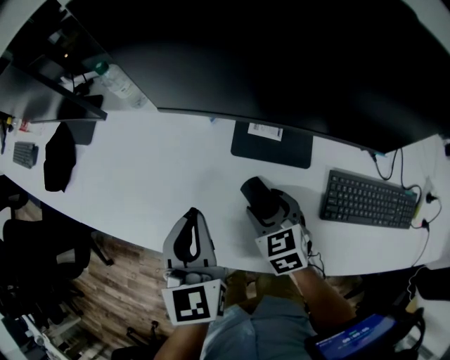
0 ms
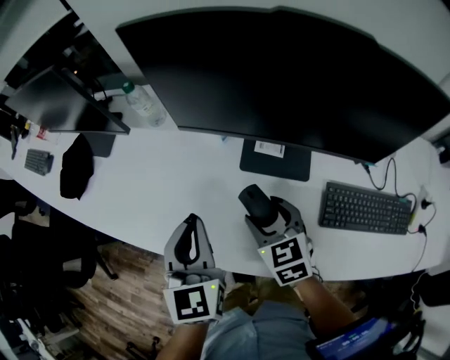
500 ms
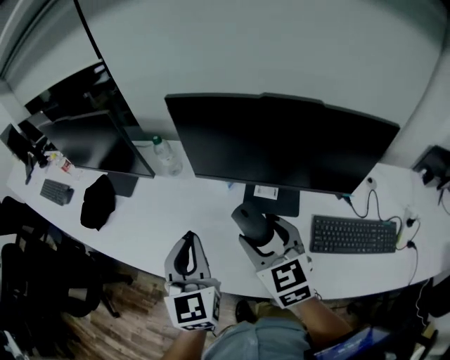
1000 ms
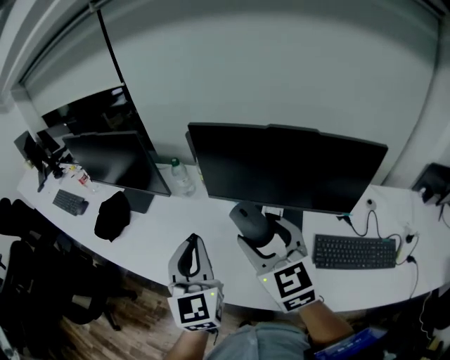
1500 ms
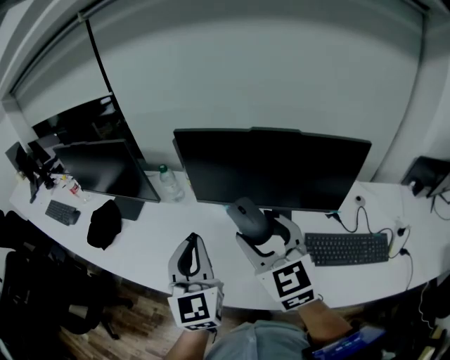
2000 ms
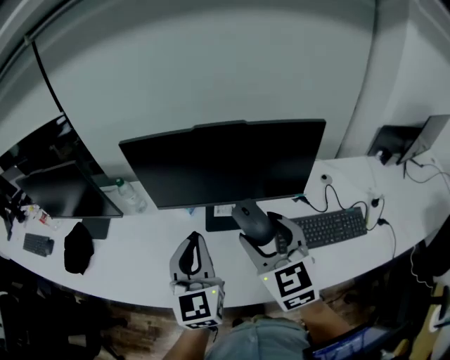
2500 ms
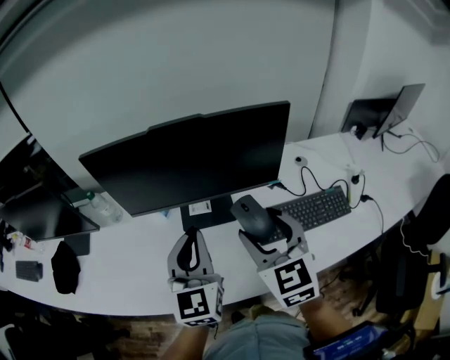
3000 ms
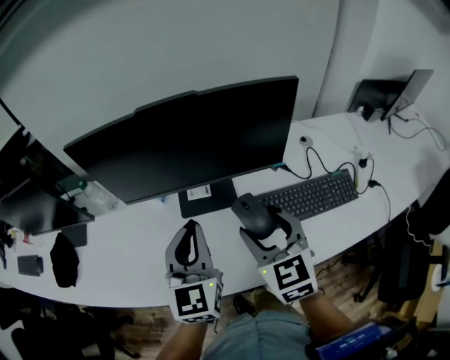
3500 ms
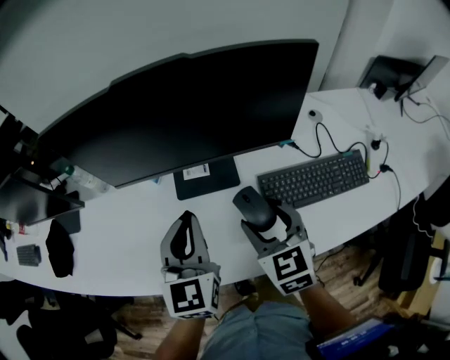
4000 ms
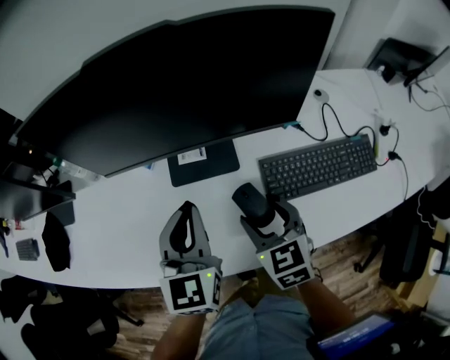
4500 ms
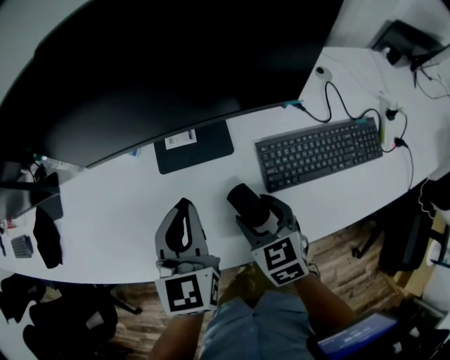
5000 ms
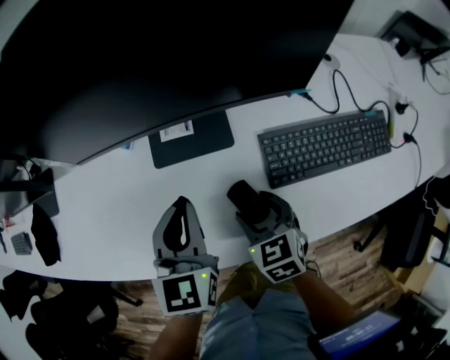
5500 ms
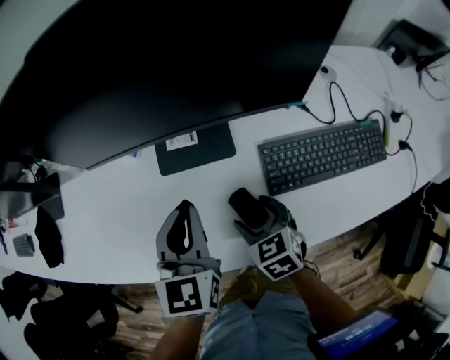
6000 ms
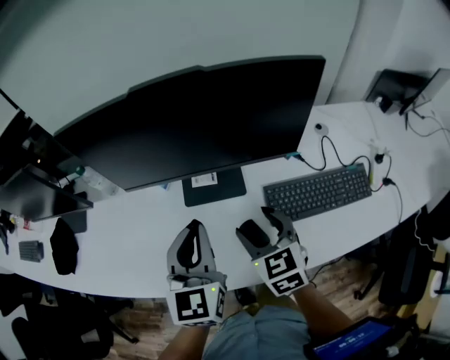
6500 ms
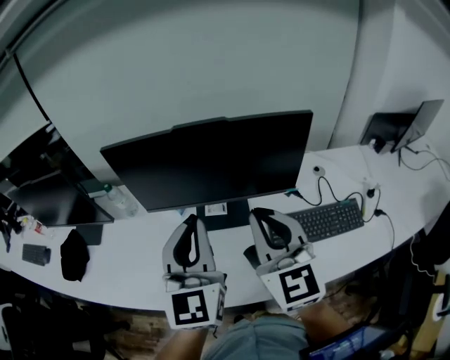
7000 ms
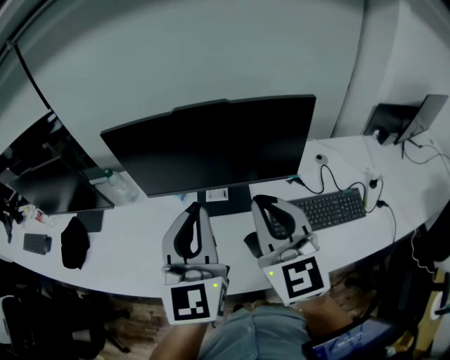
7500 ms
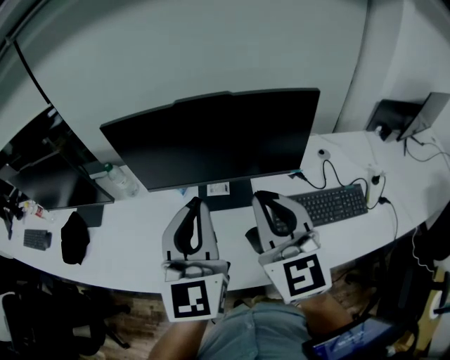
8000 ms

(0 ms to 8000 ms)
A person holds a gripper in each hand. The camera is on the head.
0 ms - 2000 ms: The left gripper goes approximately 20 cm upward, and turns by some 30 degrees; the right gripper goes some 35 cm upward, and tips its fingers upward by approximately 40 degrees.
2000 ms - 4000 ms: The right gripper goes roughly 25 cm downward and to the right, and swivels approximately 30 degrees; the left gripper goes some 20 cm to the right and downward, and changes its angle by roughly 30 degrees.
4000 ms - 6000 ms: The left gripper heads downward, covering some 5 cm; the right gripper travels downward by some 15 cm, and rotates roughly 20 degrees.
6000 ms - 8000 ms: The left gripper moves upward, some 20 cm, and turns by about 30 degrees; the right gripper is displaced upward by about 35 cm, tilts its fingers about 50 degrees upward, and closes.

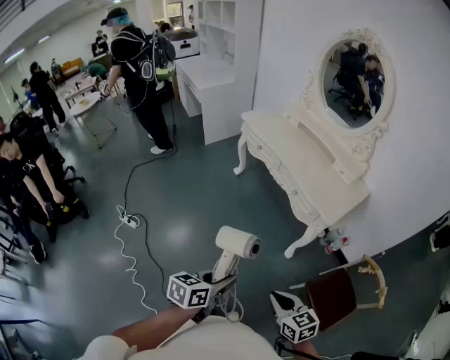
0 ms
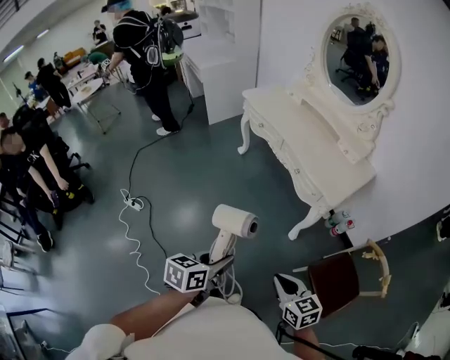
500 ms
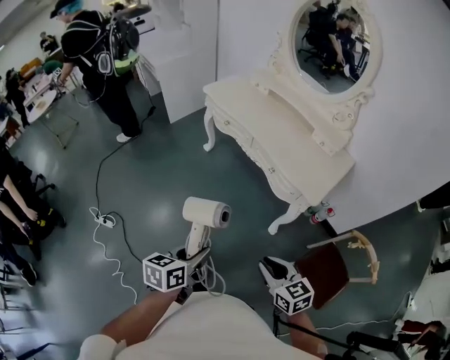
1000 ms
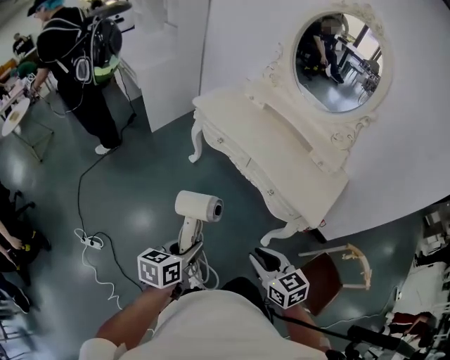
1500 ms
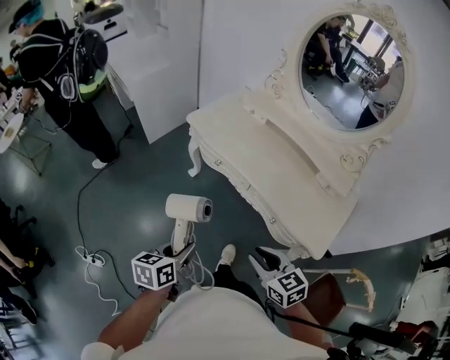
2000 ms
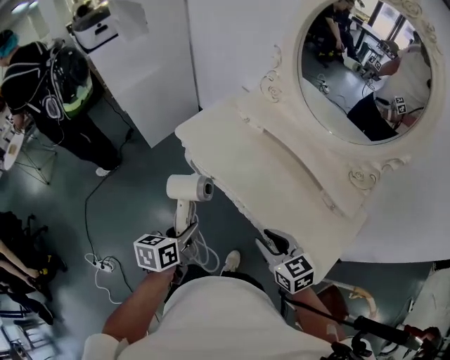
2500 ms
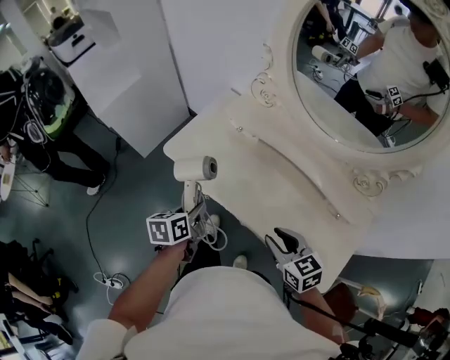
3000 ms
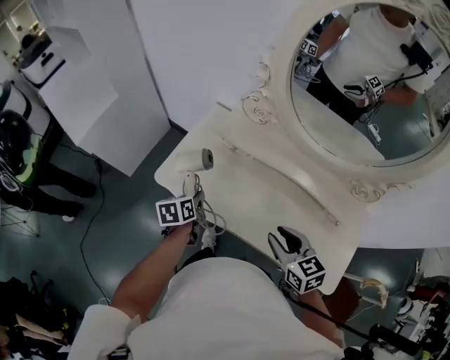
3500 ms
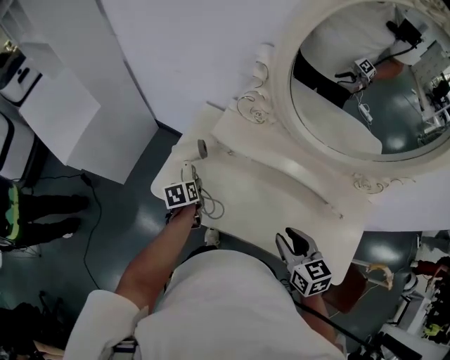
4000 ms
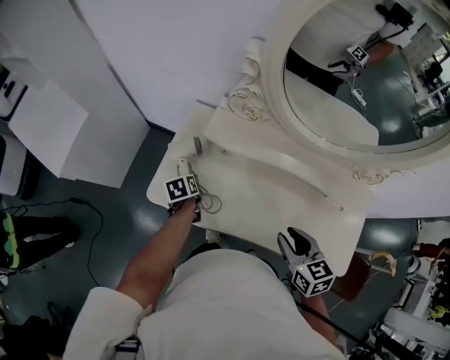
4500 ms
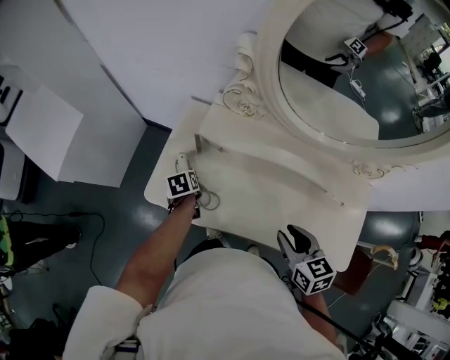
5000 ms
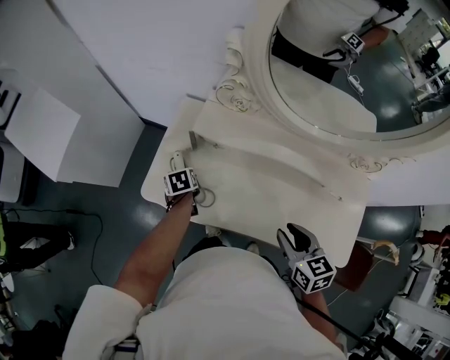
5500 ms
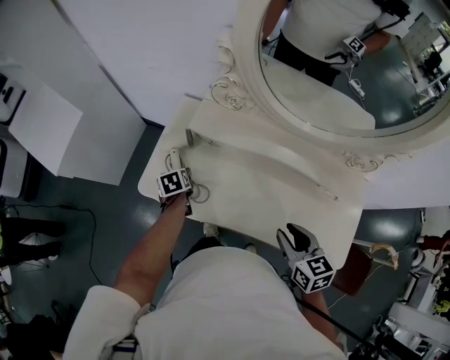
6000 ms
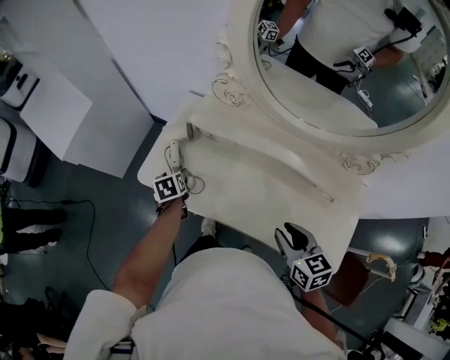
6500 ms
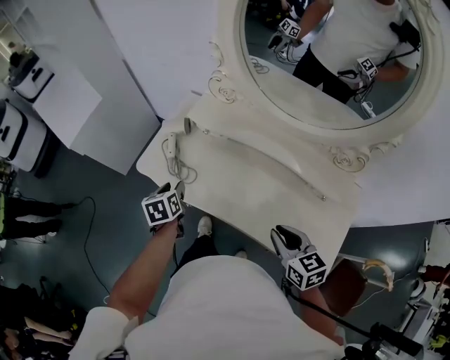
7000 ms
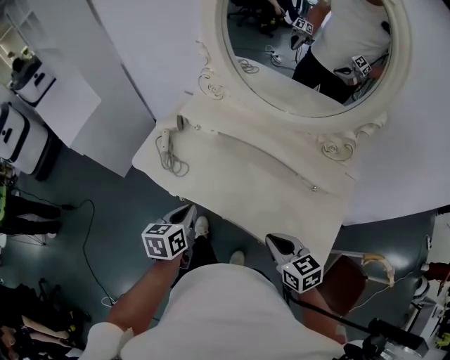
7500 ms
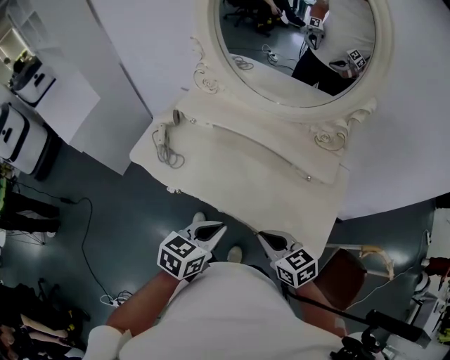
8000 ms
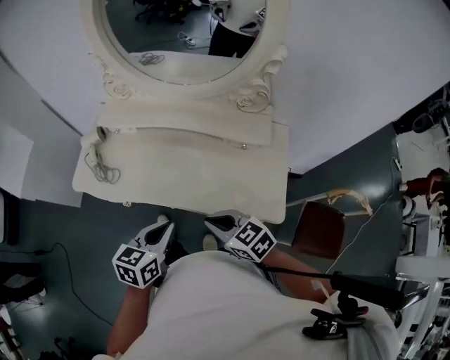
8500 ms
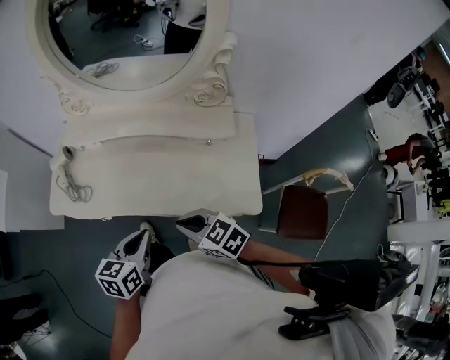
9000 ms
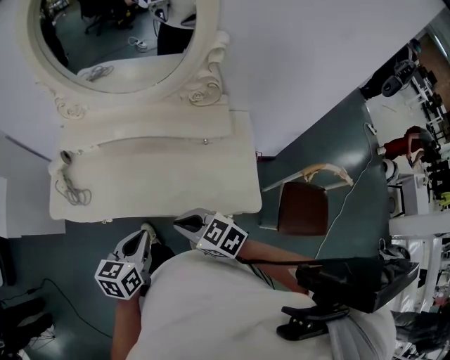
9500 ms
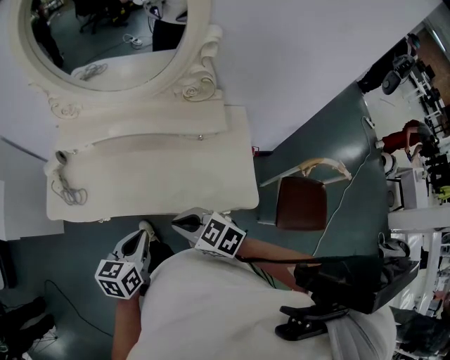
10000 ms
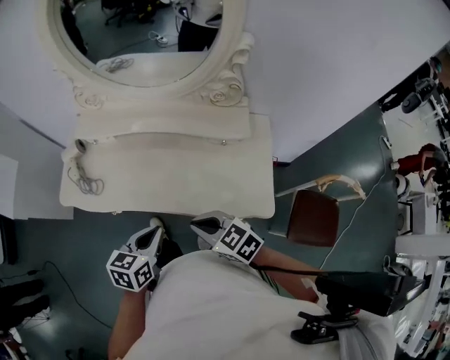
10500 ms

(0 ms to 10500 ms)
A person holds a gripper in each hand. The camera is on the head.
0 ms - 2000 ms: The two grippers travel together, forward, some 50 cm. The right gripper opens its fingers.
2000 ms - 4000 ms: The pair of grippers is taken forward, approximately 50 cm. The right gripper rotates approximately 30 degrees.
4000 ms - 6500 ms: The right gripper travels to the right and backward by approximately 10 cm, while the left gripper opens.
6500 ms - 8500 ms: The right gripper is displaced backward by roughly 15 cm, and closes up. The left gripper goes some 50 cm backward, to the right and upward, changes its angle by approximately 50 degrees, and closes.
8500 ms - 10500 ms: The grippers make only small movements.

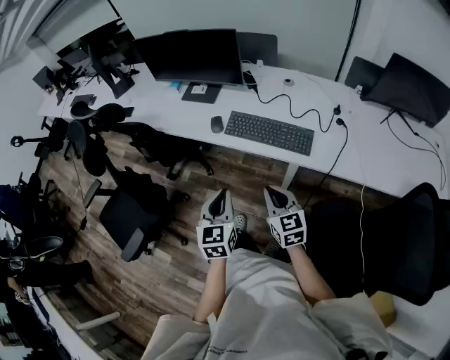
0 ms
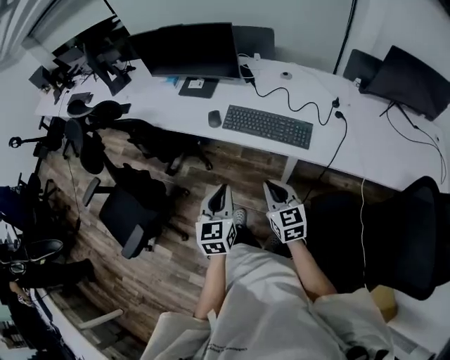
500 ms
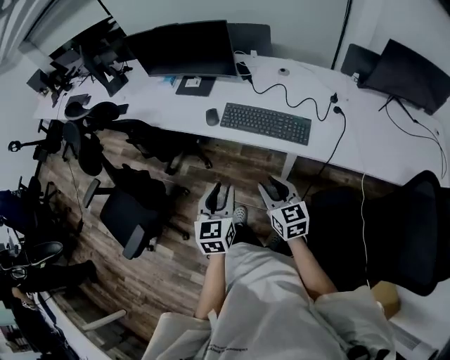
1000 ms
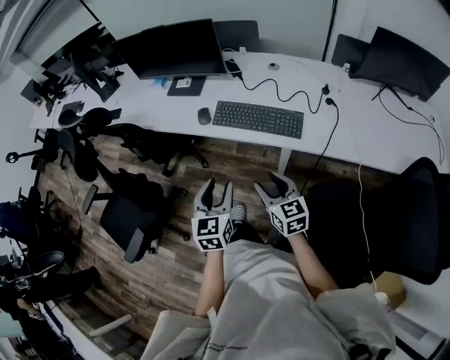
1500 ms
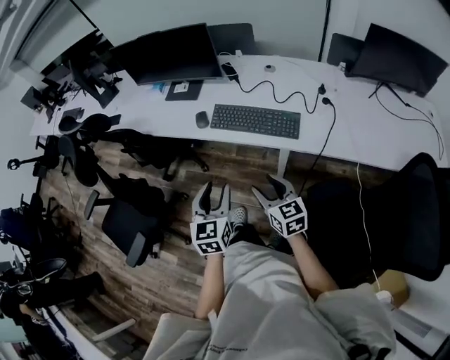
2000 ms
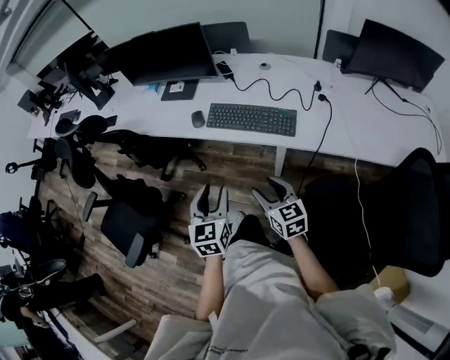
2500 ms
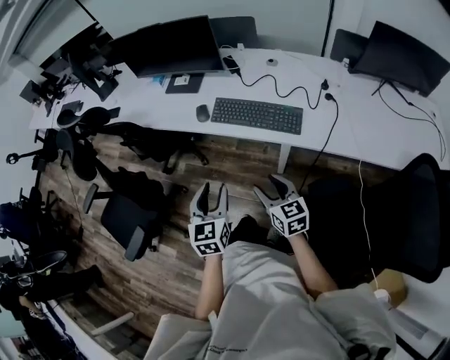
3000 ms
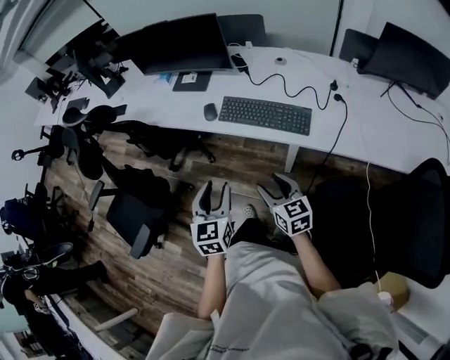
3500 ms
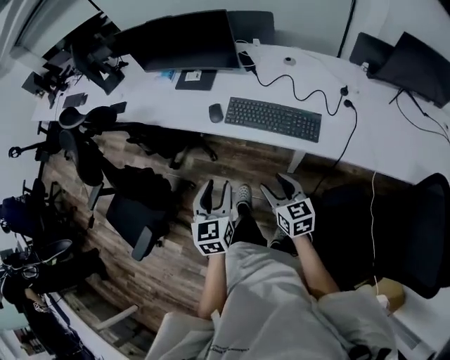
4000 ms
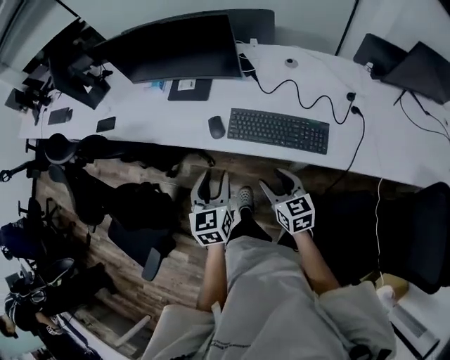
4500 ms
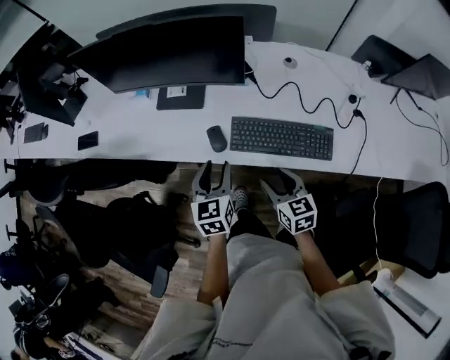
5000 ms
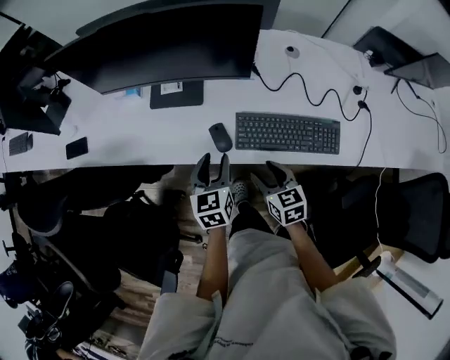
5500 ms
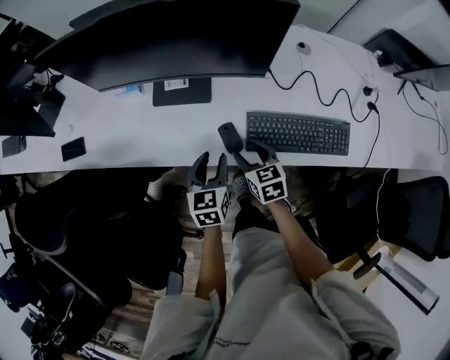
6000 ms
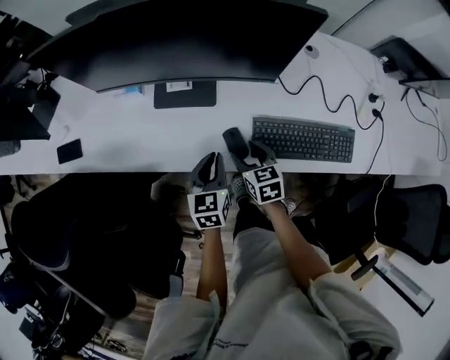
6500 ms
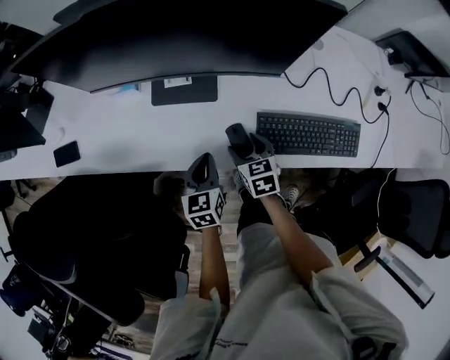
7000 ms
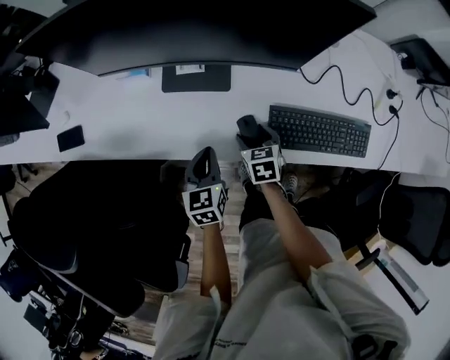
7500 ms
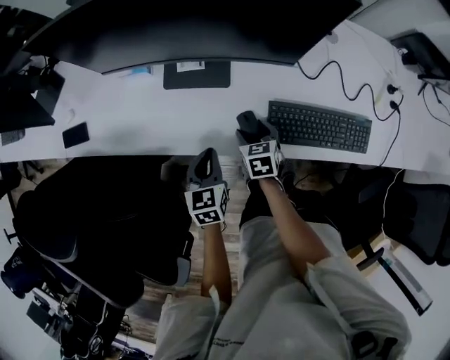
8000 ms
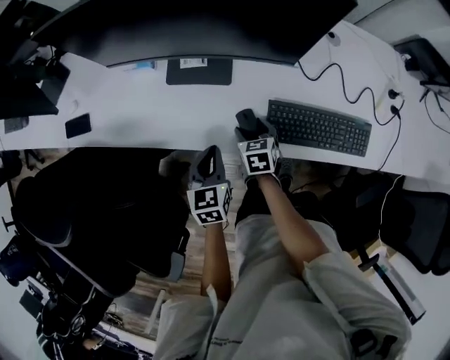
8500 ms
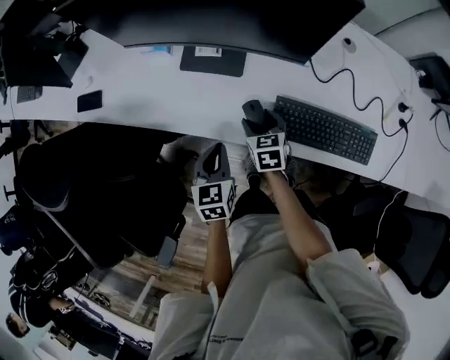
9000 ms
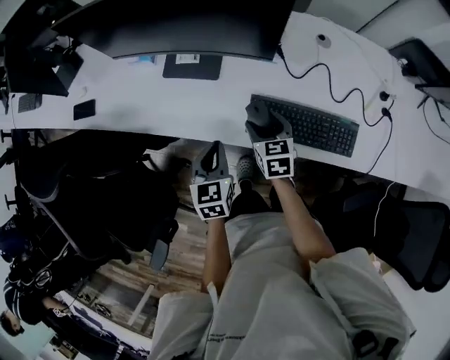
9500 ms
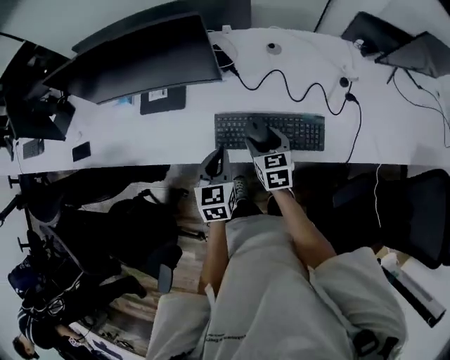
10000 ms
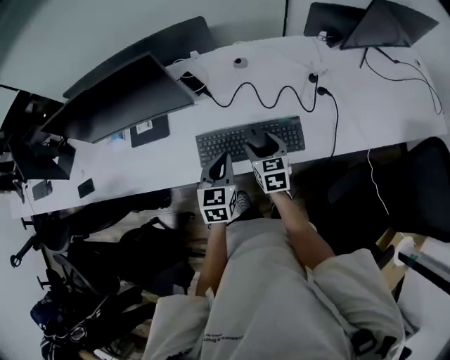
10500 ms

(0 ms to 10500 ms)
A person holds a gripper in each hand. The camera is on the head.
0 ms - 2000 ms: The right gripper opens its fingers. Meanwhile the left gripper opens up.
2000 ms - 4000 ms: Both grippers travel together forward, roughly 5 cm.
4000 ms - 6500 ms: The left gripper is displaced forward and downward by roughly 40 cm, changes its angle by some 20 degrees, and closes its fingers; the right gripper shifts approximately 40 cm forward and to the left, and rotates approximately 20 degrees.
6500 ms - 8500 ms: The right gripper goes approximately 5 cm downward.
8500 ms - 10500 ms: The right gripper heads to the right and upward, covering approximately 30 cm, and rotates some 20 degrees, while the left gripper travels to the right by roughly 30 cm, and changes its angle by about 20 degrees.
